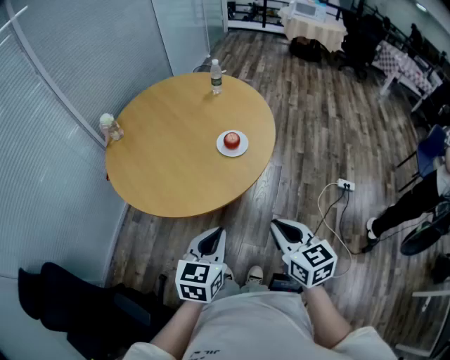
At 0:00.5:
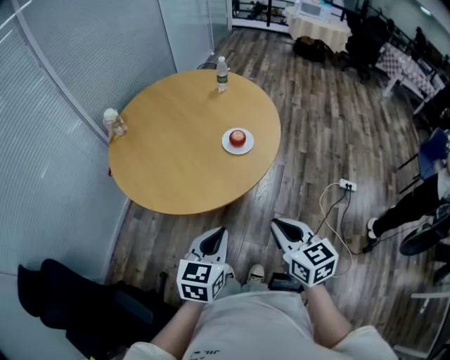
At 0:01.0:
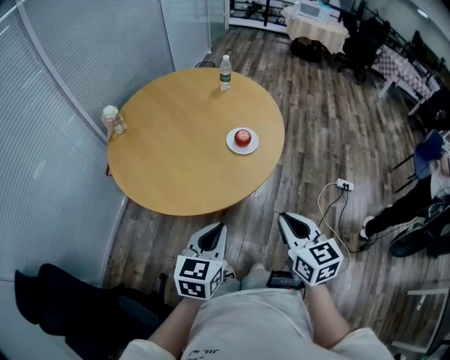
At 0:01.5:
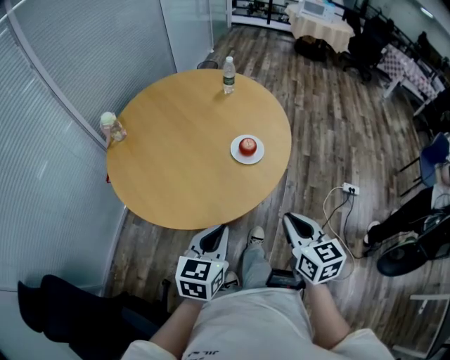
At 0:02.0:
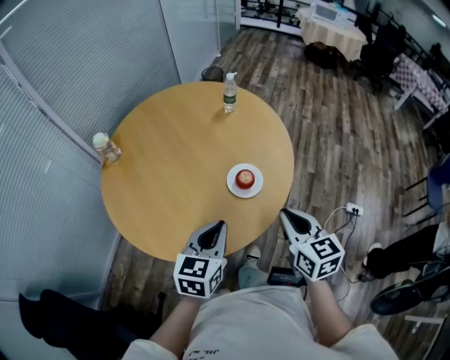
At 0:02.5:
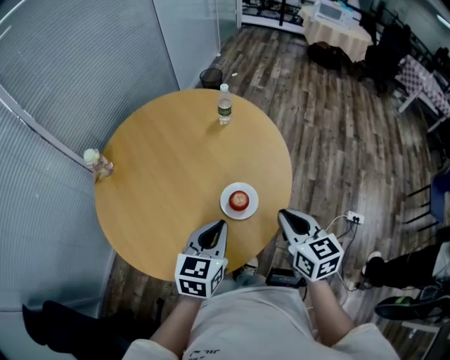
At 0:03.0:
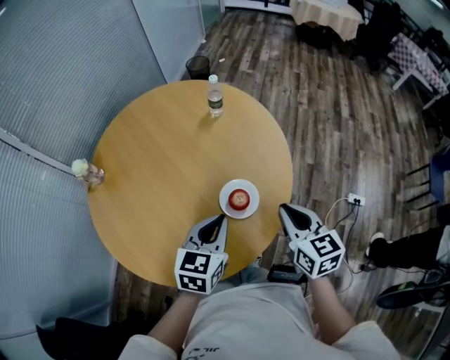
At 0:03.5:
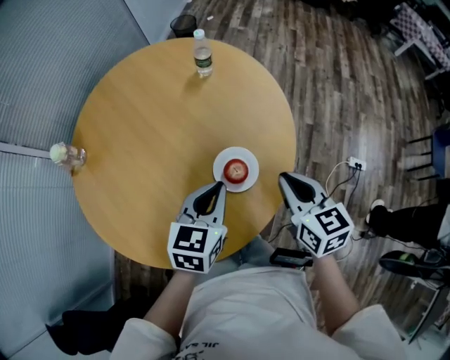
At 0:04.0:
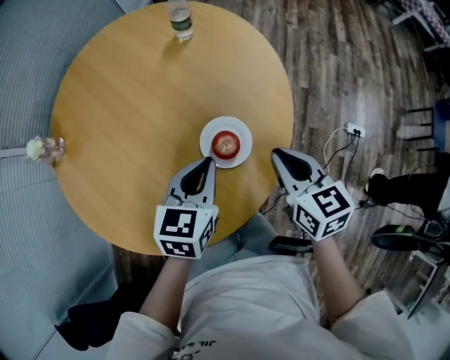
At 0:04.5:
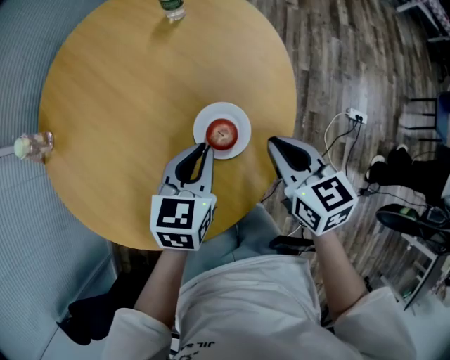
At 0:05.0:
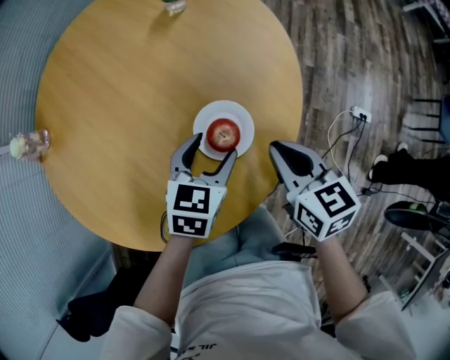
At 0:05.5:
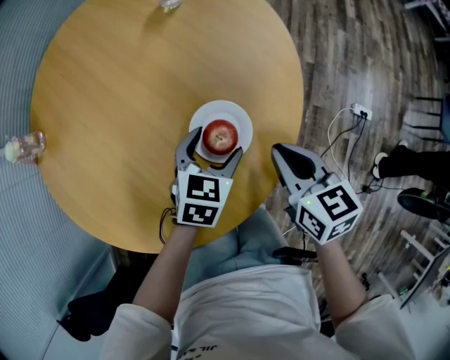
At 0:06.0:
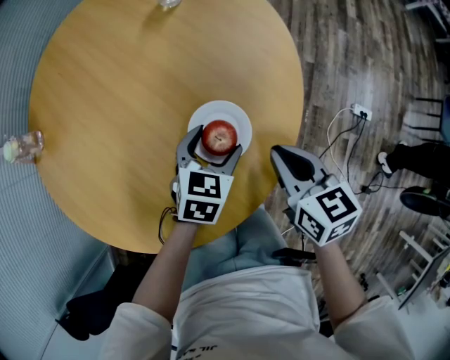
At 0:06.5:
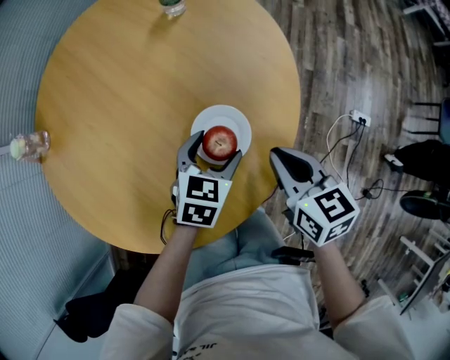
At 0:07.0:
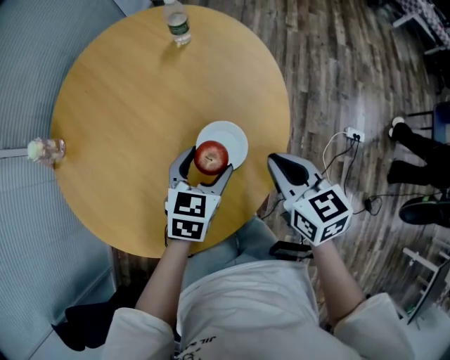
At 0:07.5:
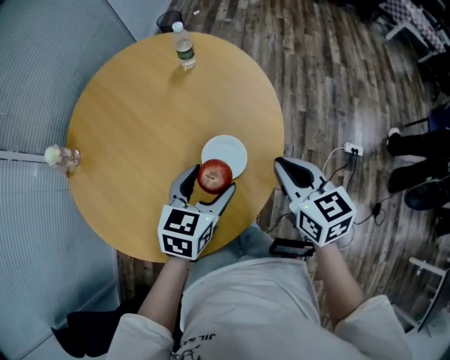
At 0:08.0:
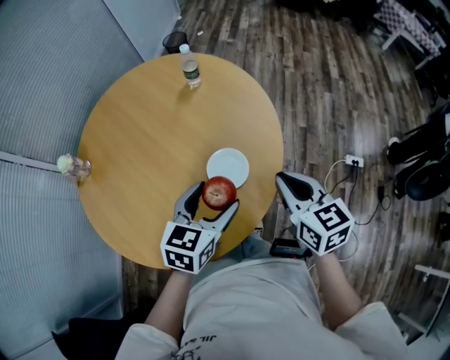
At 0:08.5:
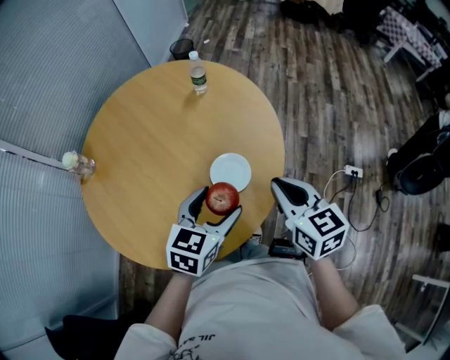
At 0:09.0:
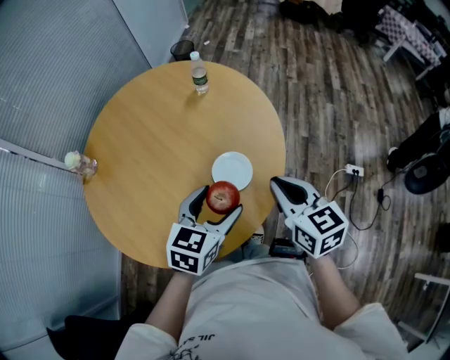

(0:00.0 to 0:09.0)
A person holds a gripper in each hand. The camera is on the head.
0:00.0 - 0:02.0: Both grippers move forward, roughly 25 cm.
0:02.0 - 0:04.5: The grippers both shift forward and downward by approximately 20 cm.
0:04.5 - 0:07.0: The left gripper travels downward and back again, about 10 cm each way, and opens its fingers.
0:07.0 - 0:09.0: The left gripper is displaced upward and backward by about 15 cm; the right gripper heads upward, covering some 10 cm.

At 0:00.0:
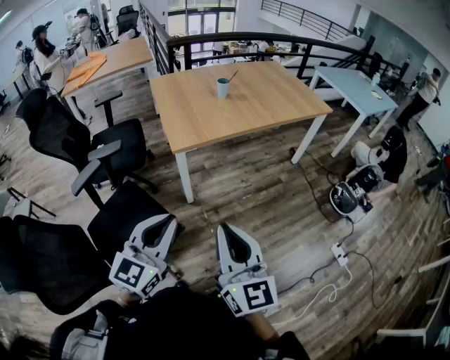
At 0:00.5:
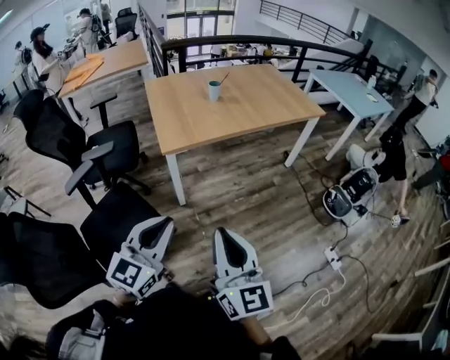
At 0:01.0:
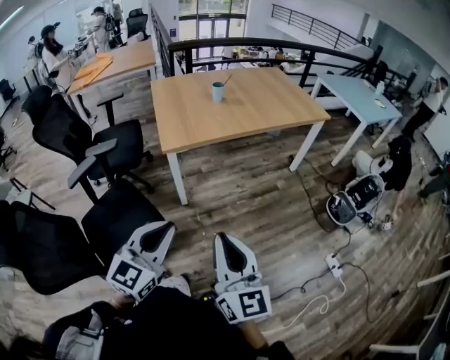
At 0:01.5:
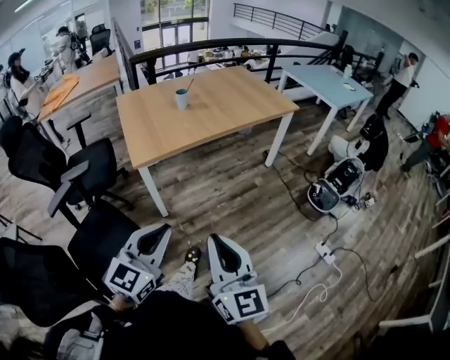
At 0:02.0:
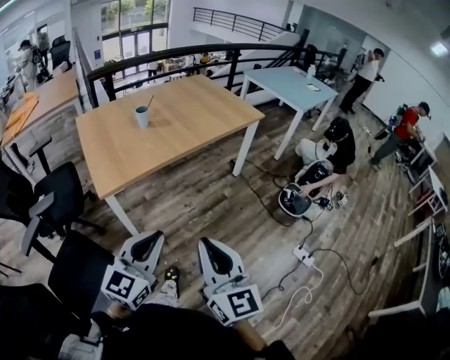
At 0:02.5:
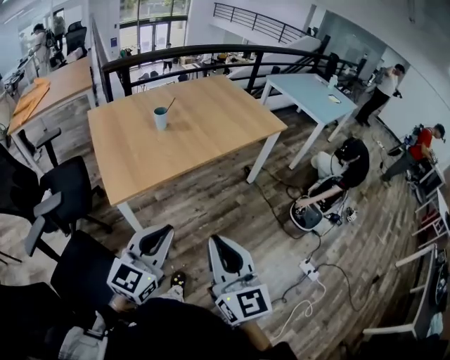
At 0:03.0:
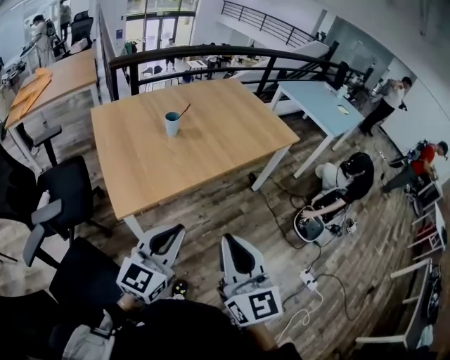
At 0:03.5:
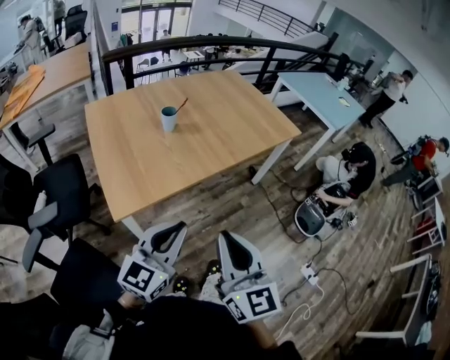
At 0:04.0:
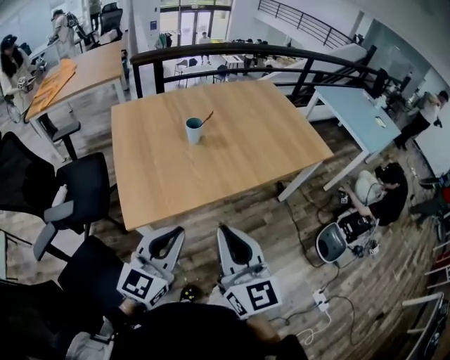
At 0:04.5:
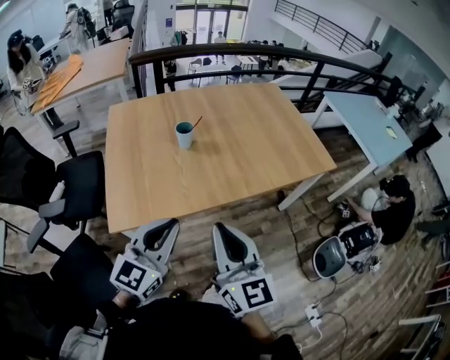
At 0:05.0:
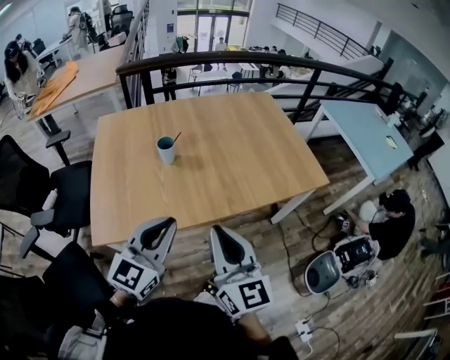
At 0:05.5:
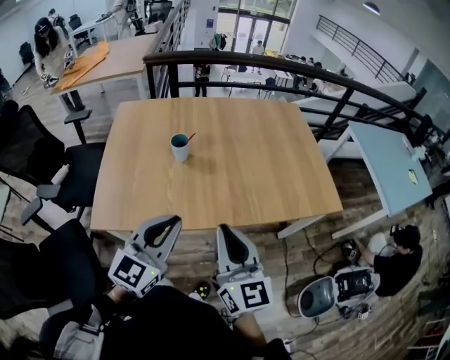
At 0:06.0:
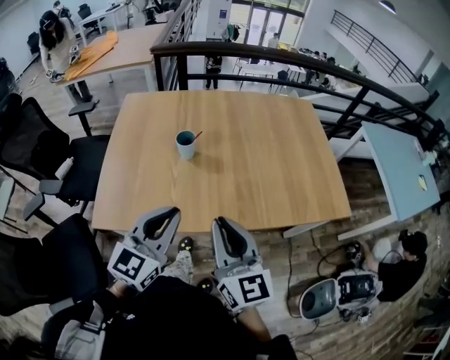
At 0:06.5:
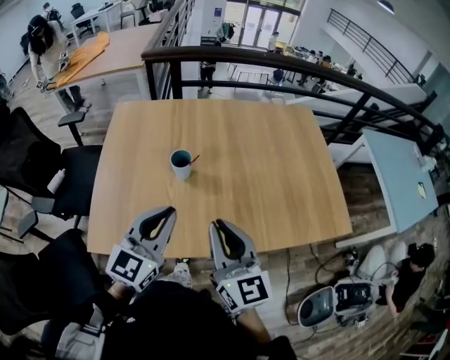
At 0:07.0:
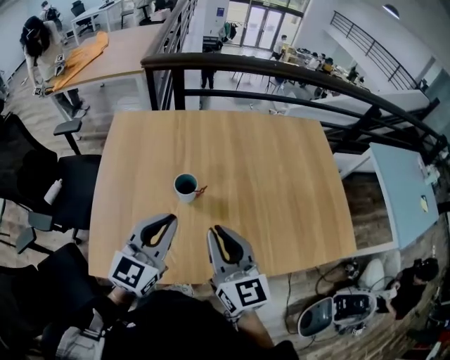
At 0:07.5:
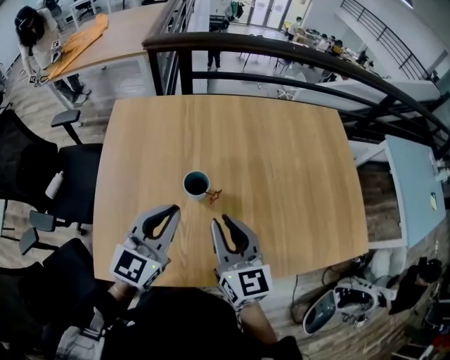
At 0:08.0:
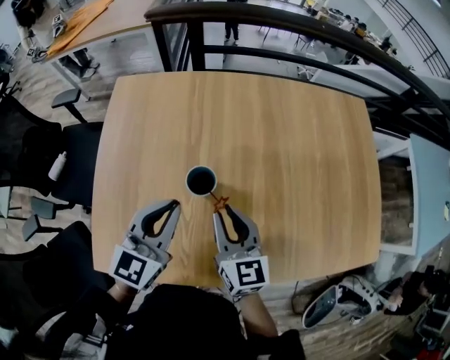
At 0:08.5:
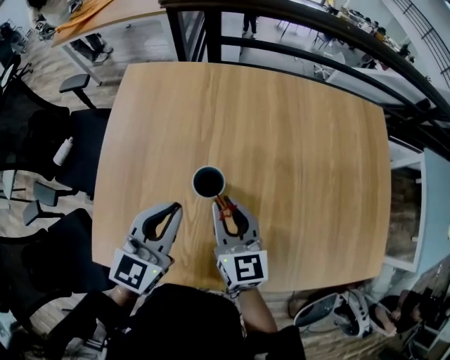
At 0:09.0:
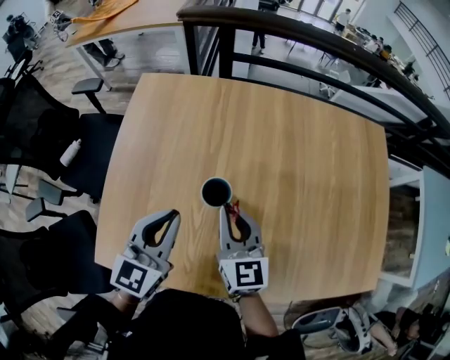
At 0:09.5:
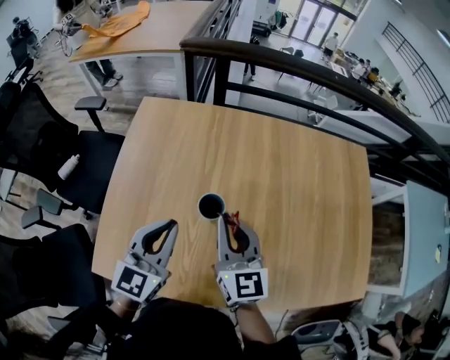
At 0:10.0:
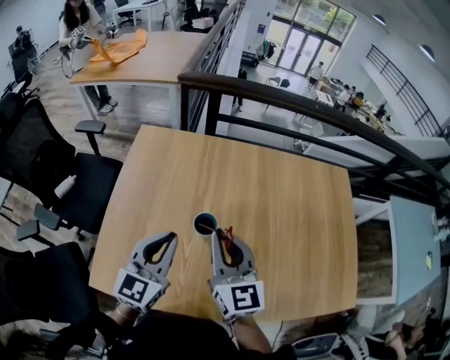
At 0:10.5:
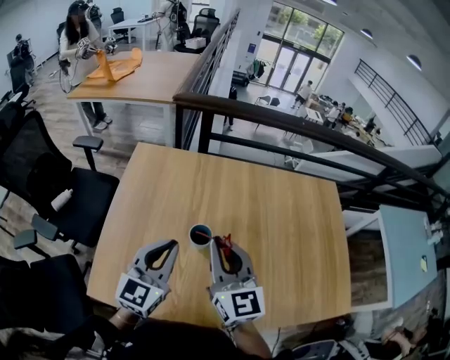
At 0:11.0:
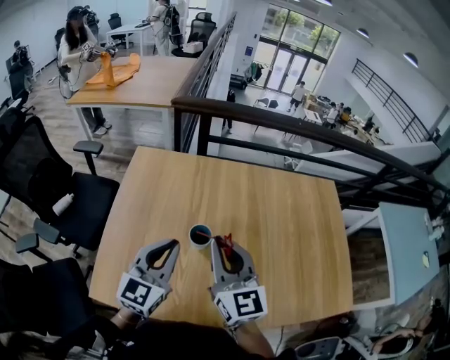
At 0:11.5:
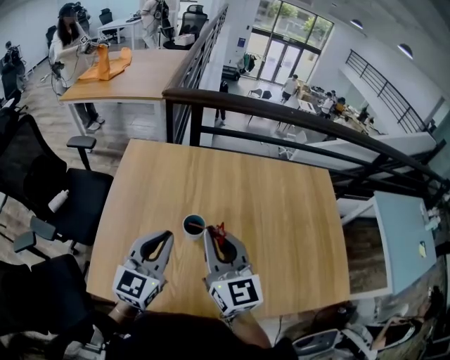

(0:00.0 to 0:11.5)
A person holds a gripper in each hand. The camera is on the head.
0:00.0 - 0:02.0: The grippers both shift to the right and forward by some 20 cm.
0:02.0 - 0:04.0: The two grippers go about 35 cm forward and to the left.
0:04.0 - 0:06.0: The two grippers go approximately 30 cm forward and to the right.
0:06.0 - 0:07.5: Both grippers travel together forward, roughly 30 cm.
0:07.5 - 0:09.5: The right gripper goes roughly 10 cm forward, and reaches some 10 cm downward, then returns.
0:09.5 - 0:11.5: The right gripper goes roughly 10 cm upward and backward. Meanwhile the left gripper travels upward by about 5 cm.

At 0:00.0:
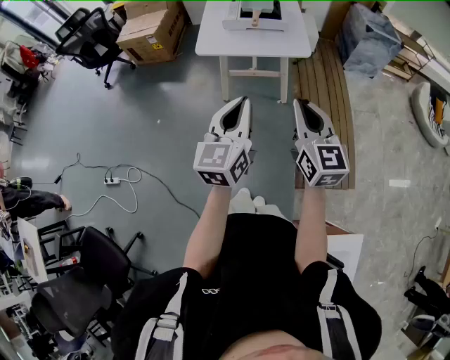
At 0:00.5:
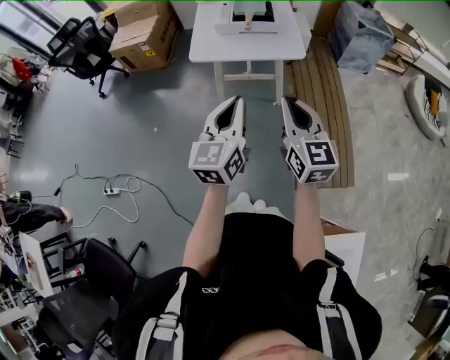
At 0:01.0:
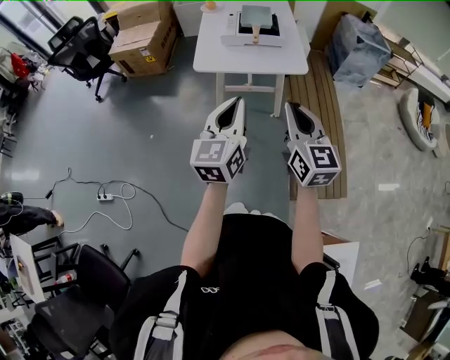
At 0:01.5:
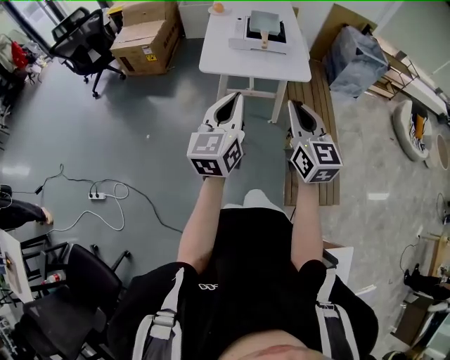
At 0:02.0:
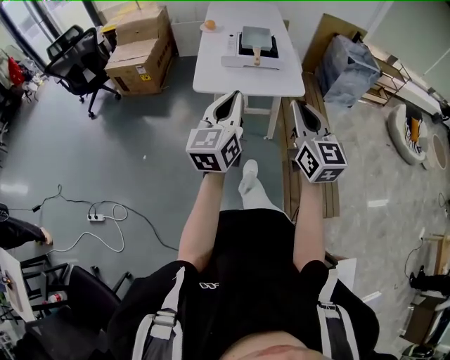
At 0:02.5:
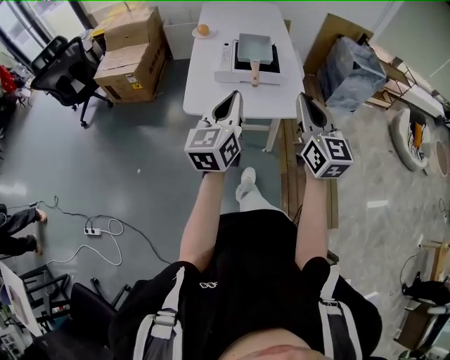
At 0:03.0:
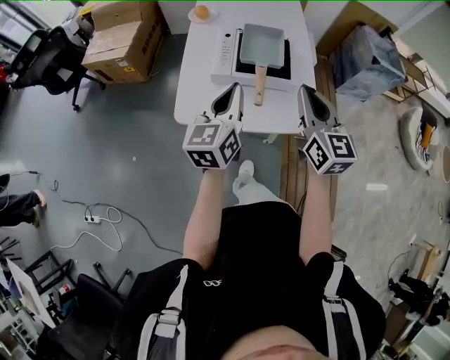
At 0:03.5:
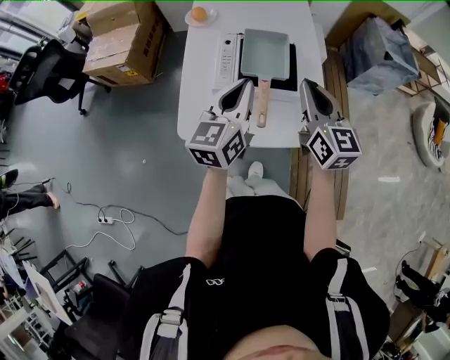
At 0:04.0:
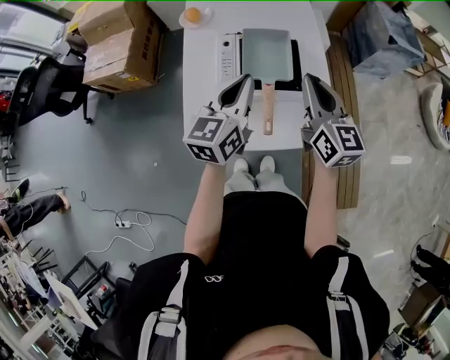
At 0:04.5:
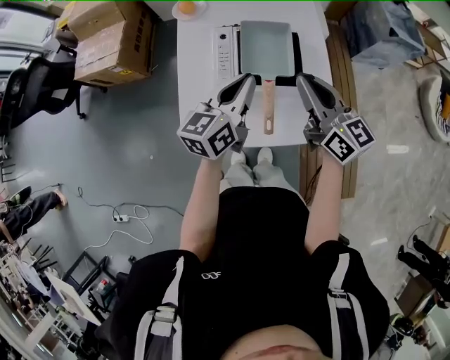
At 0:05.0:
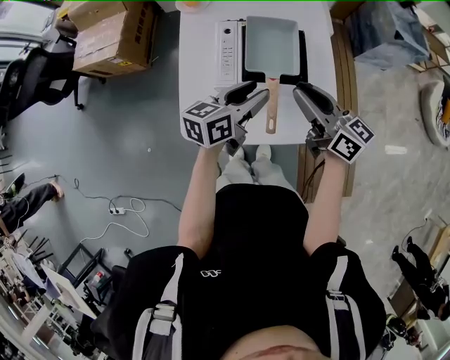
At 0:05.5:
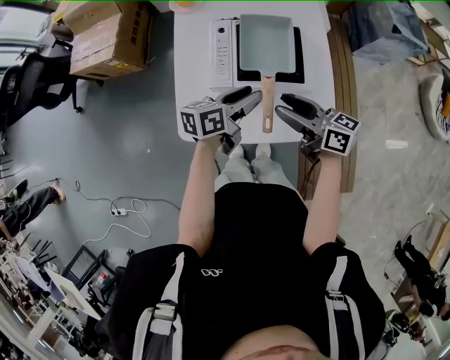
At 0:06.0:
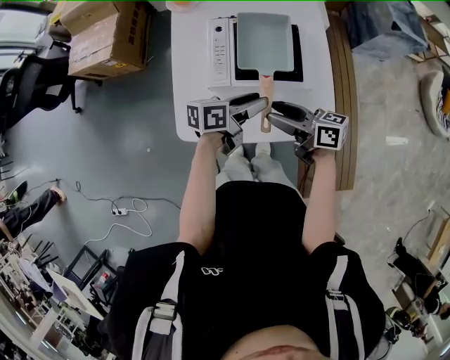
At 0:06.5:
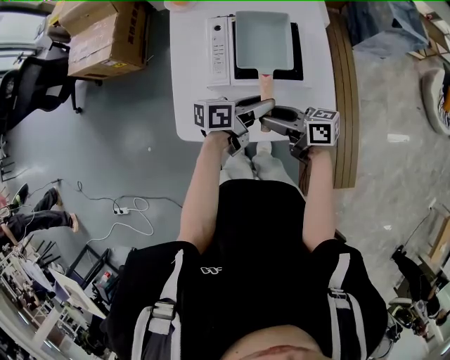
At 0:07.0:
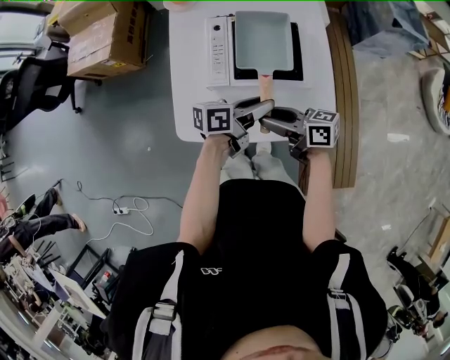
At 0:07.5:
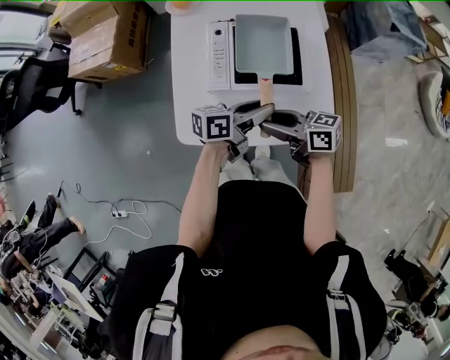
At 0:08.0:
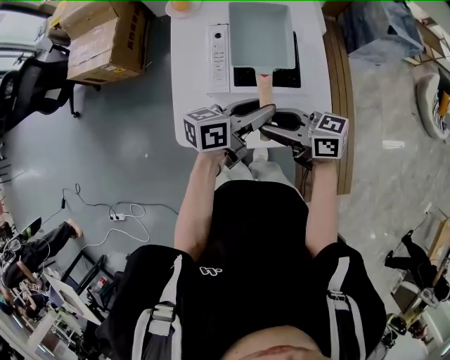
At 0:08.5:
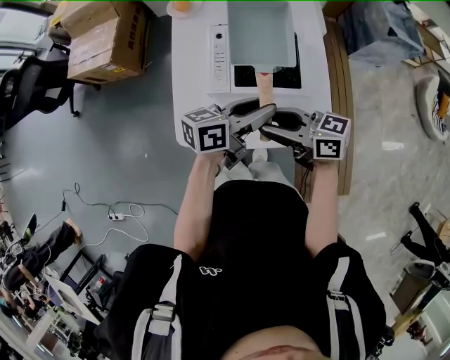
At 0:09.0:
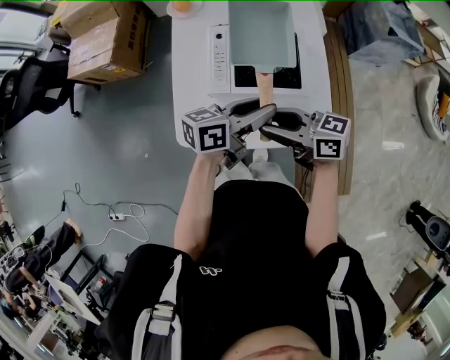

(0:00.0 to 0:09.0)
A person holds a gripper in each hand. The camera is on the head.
0:00.0 - 0:02.0: Both grippers travel together forward and to the left, some 15 cm.
0:02.0 - 0:04.5: The pair of grippers is taken forward, roughly 50 cm. The right gripper turns by some 30 degrees, while the left gripper turns by about 20 degrees.
0:04.5 - 0:07.0: The two grippers go about 15 cm downward. The left gripper turns by about 40 degrees, and opens its fingers. The right gripper swivels some 50 degrees, and opens its fingers.
0:07.0 - 0:09.0: Both grippers travel together upward, about 10 cm.
